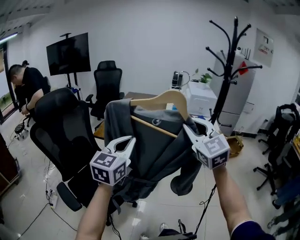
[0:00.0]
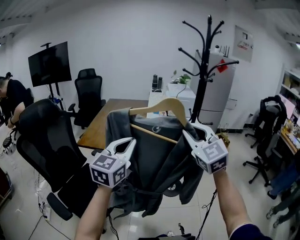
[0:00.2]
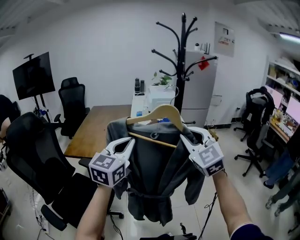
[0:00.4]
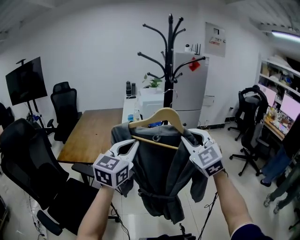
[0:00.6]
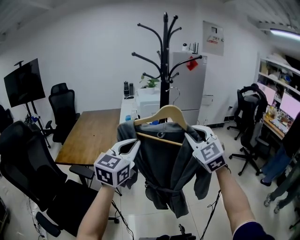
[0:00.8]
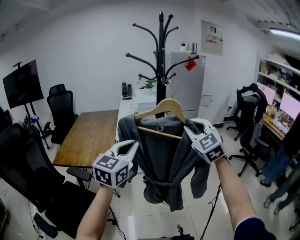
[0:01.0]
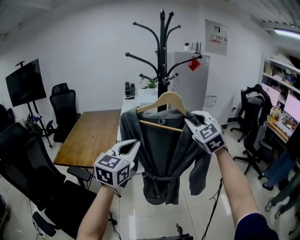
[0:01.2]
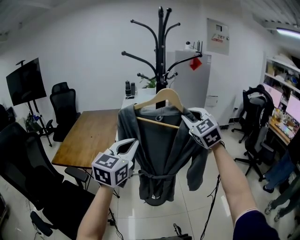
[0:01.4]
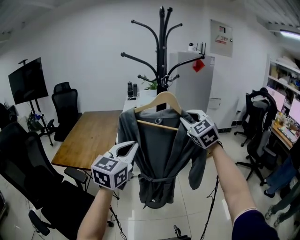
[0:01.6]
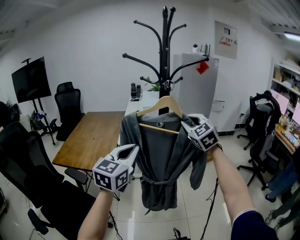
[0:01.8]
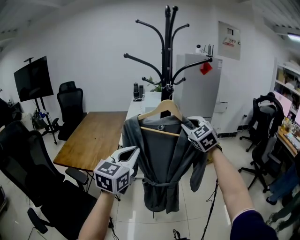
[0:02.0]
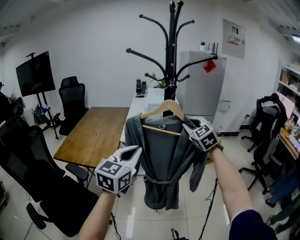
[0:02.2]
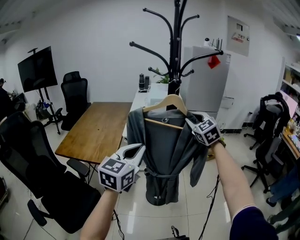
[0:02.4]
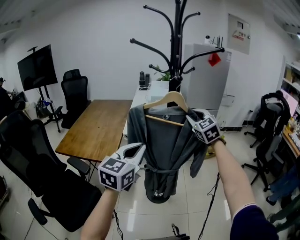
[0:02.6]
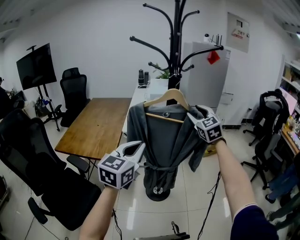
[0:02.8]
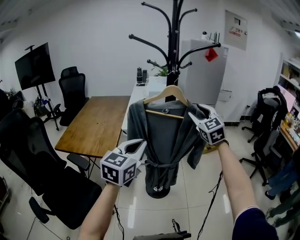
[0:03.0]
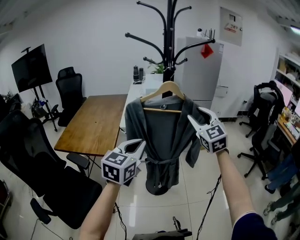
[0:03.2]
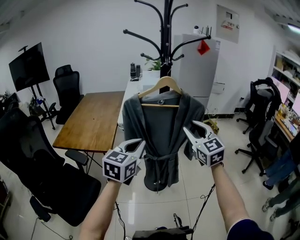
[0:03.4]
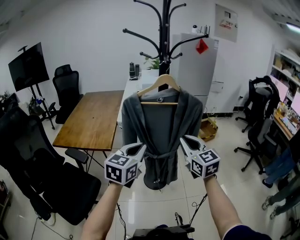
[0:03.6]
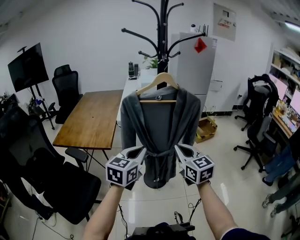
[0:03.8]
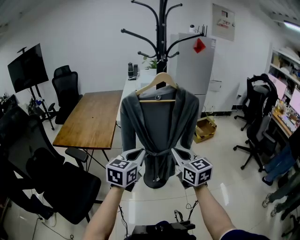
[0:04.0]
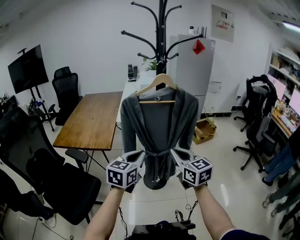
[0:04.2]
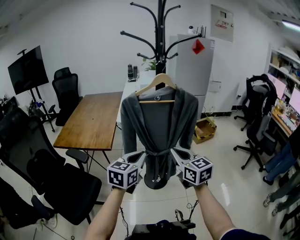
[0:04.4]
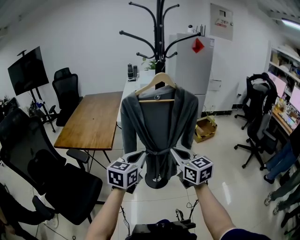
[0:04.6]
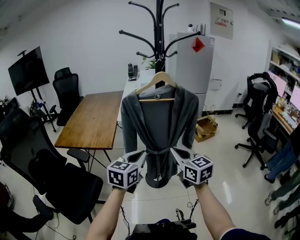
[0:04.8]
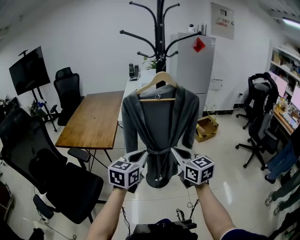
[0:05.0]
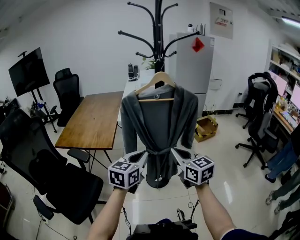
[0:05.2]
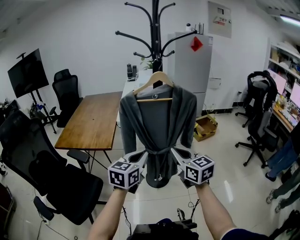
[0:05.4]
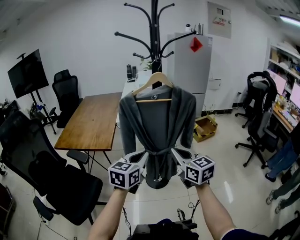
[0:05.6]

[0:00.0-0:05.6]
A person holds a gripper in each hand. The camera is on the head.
0:00.0 to 0:01.4: Both grippers move to the right and forward, roughly 35 cm. The right gripper rotates about 20 degrees.
0:01.4 to 0:02.8: The left gripper ends up some 5 cm from where it was. The right gripper goes about 15 cm forward and downward, and opens up.
0:02.8 to 0:04.2: The right gripper moves backward and downward, about 30 cm, rotates about 40 degrees, and closes up, while the left gripper shifts about 10 cm downward and backward.
0:04.2 to 0:05.6: The grippers move only a little.

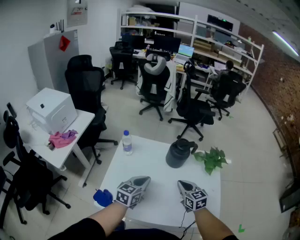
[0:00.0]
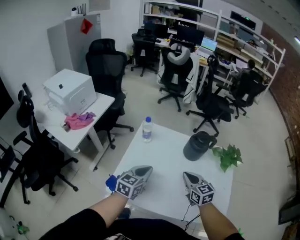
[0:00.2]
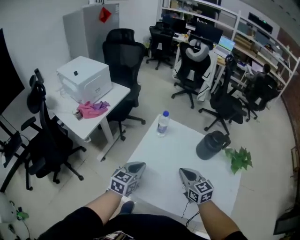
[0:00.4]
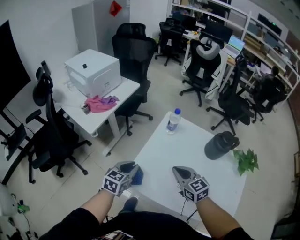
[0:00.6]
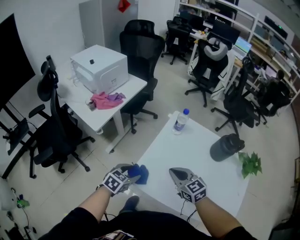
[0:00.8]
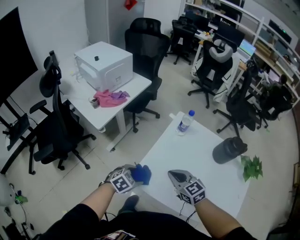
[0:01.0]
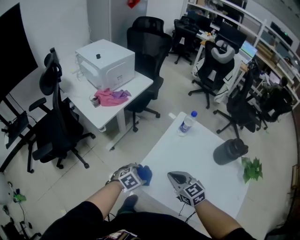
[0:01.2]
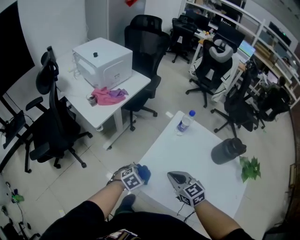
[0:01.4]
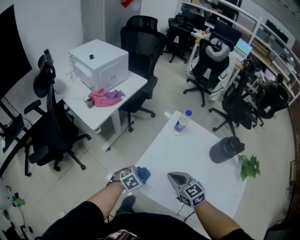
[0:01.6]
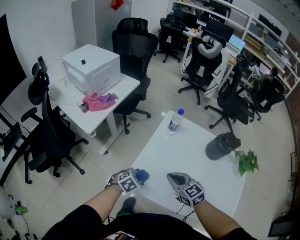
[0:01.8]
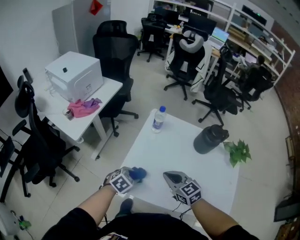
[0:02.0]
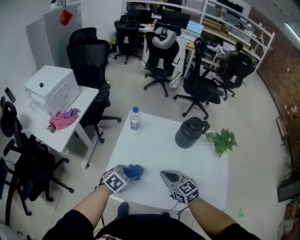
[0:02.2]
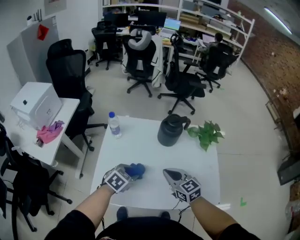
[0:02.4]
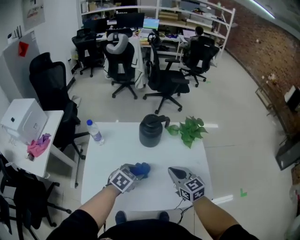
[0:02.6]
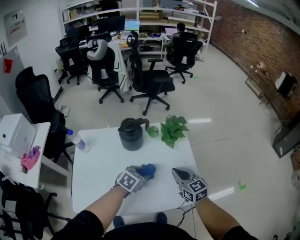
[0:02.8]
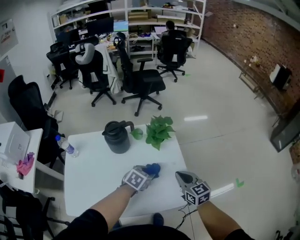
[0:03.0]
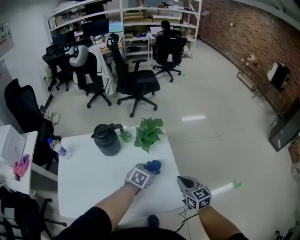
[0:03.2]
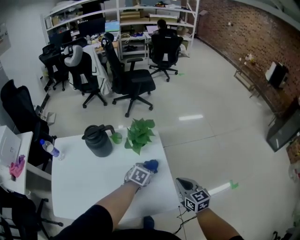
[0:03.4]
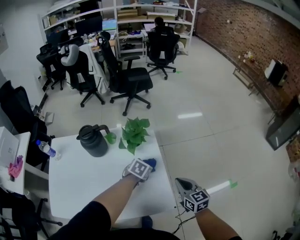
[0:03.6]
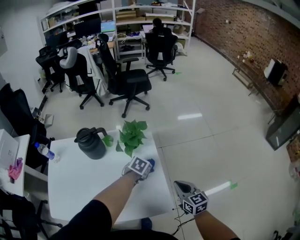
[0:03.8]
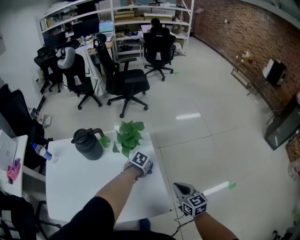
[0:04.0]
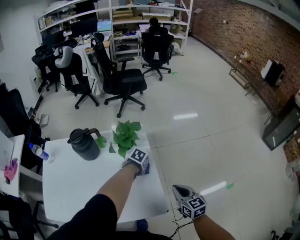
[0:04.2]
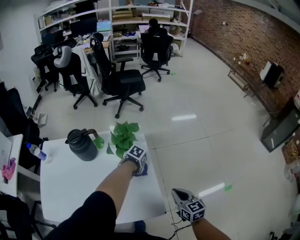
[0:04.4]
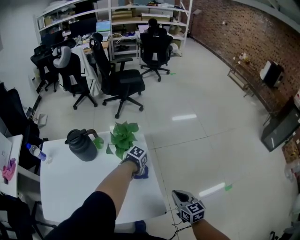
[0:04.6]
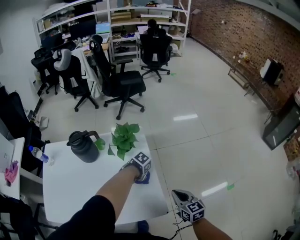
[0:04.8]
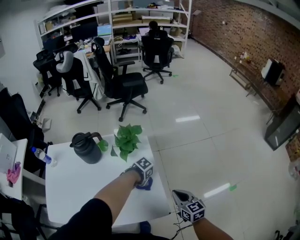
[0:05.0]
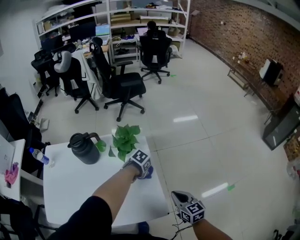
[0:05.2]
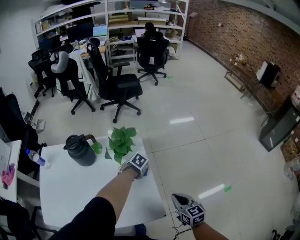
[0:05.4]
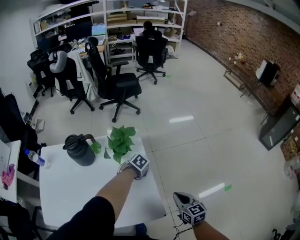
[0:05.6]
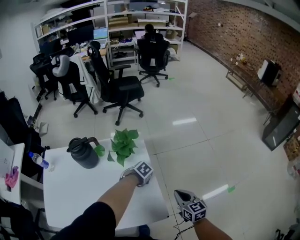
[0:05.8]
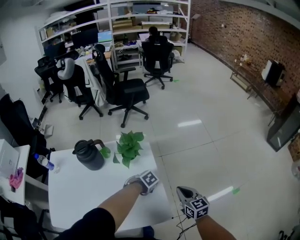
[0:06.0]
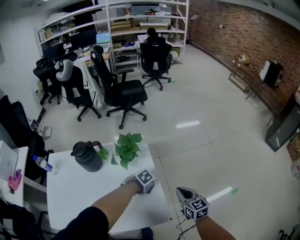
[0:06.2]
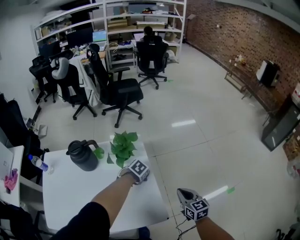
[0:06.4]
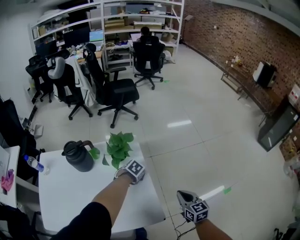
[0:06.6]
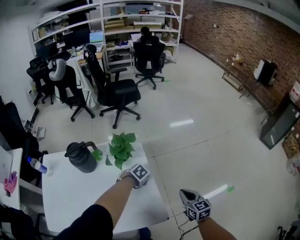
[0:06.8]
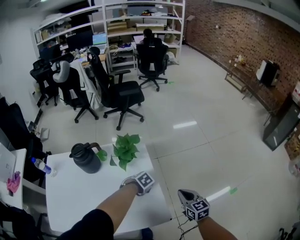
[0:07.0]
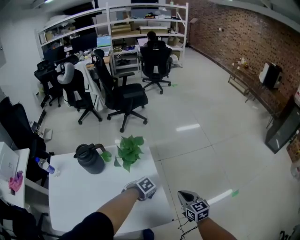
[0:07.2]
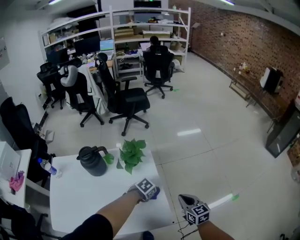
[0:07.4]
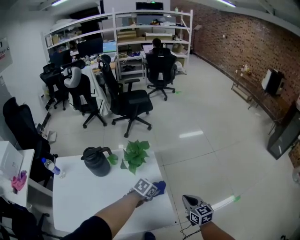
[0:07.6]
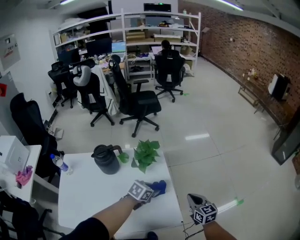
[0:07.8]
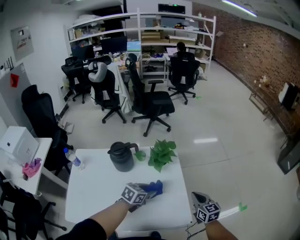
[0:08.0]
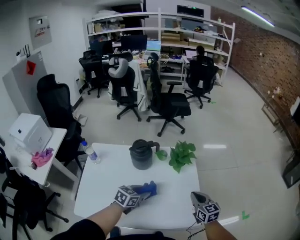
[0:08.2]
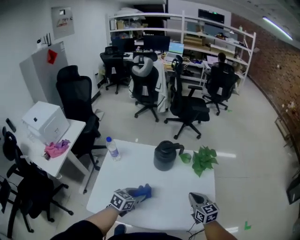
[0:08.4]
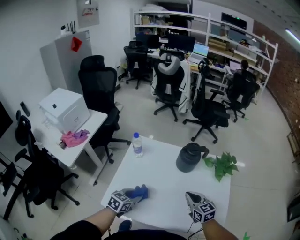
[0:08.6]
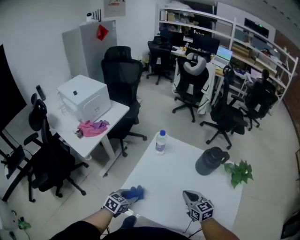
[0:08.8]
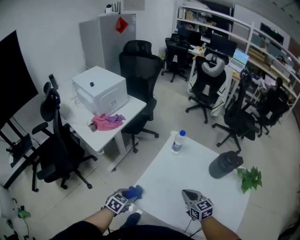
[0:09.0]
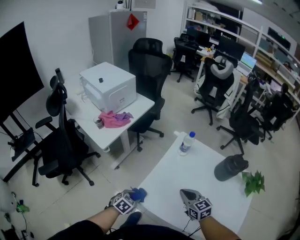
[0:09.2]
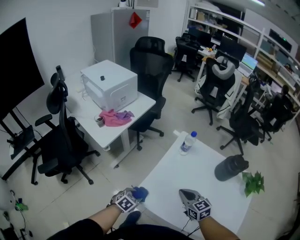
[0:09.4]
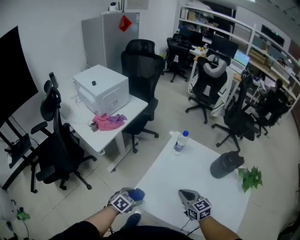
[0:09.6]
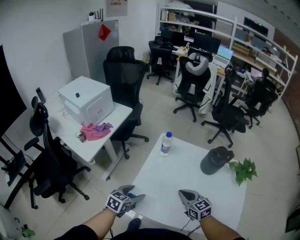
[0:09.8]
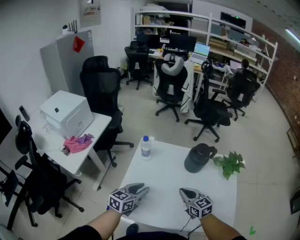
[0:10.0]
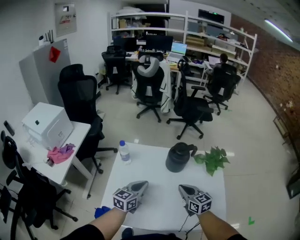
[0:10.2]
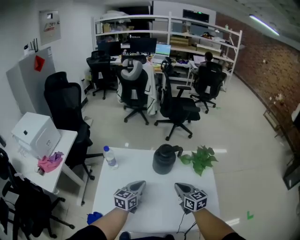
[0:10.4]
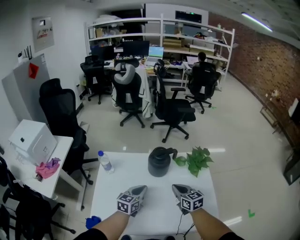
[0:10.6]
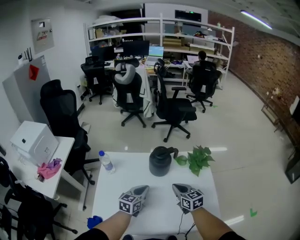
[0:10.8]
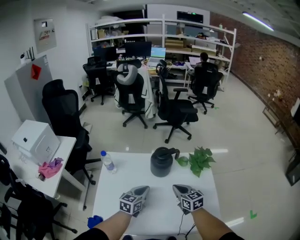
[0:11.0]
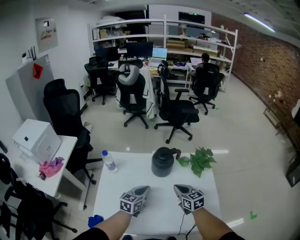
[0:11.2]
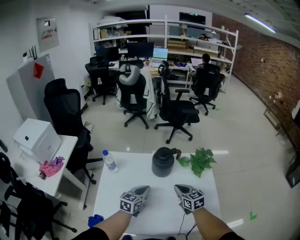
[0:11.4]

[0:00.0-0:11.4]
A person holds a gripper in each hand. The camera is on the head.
0:00.0 to 0:01.4: The right gripper goes some 30 cm to the left, and swivels roughly 40 degrees; the left gripper travels to the left and downward by approximately 35 cm, tips its fingers downward by some 40 degrees, and opens up.
0:01.4 to 0:02.8: The pair of grippers is taken roughly 50 cm. The left gripper rotates roughly 30 degrees, and closes its fingers; the right gripper changes its angle by roughly 50 degrees.
0:02.8 to 0:04.2: The left gripper is displaced to the right, forward and downward by roughly 30 cm, and changes its angle by roughly 30 degrees. The right gripper moves to the right, about 25 cm.
0:05.6 to 0:07.2: The left gripper moves about 10 cm.
0:07.2 to 0:08.6: The two grippers travel together, approximately 50 cm. The left gripper tilts its fingers roughly 40 degrees upward. The right gripper changes its angle by about 30 degrees.
0:08.6 to 0:10.0: The right gripper is displaced to the left by about 10 cm; the left gripper travels upward and forward by some 10 cm, travels to the left and back again, approximately 25 cm each way, and opens, then closes again.
0:10.0 to 0:11.4: The right gripper shifts some 15 cm to the right, while the left gripper goes roughly 20 cm to the right and forward, and closes its fingers.

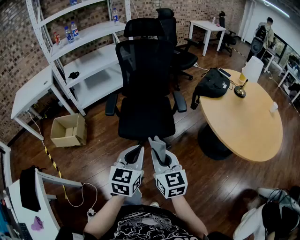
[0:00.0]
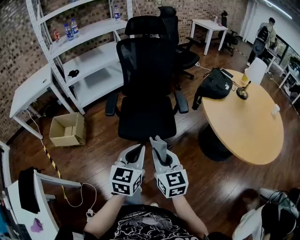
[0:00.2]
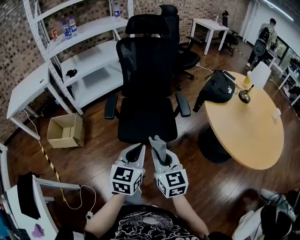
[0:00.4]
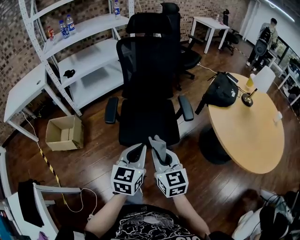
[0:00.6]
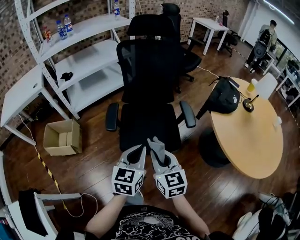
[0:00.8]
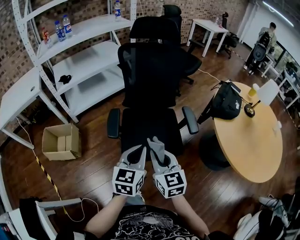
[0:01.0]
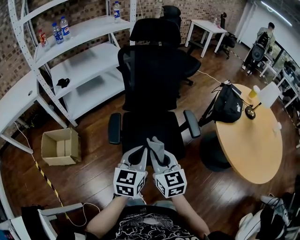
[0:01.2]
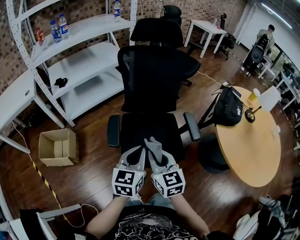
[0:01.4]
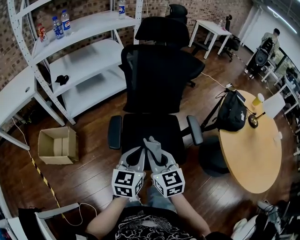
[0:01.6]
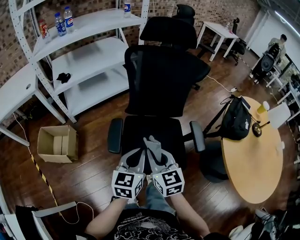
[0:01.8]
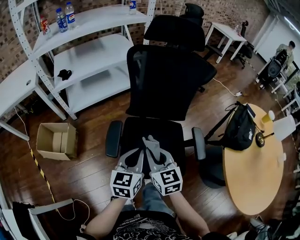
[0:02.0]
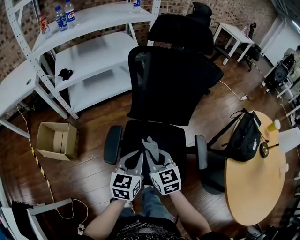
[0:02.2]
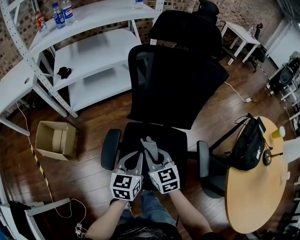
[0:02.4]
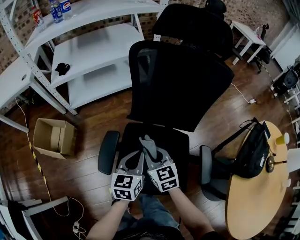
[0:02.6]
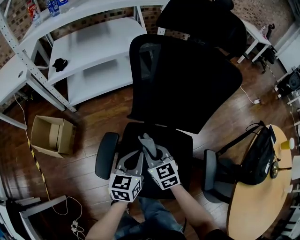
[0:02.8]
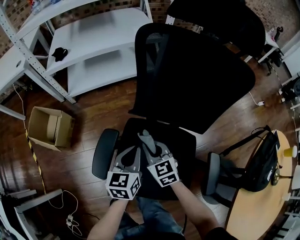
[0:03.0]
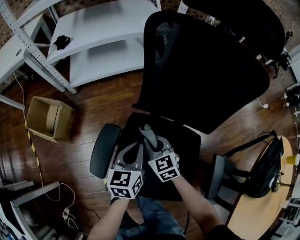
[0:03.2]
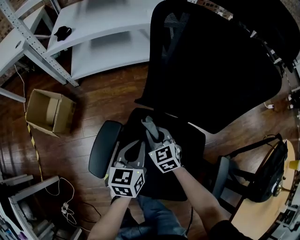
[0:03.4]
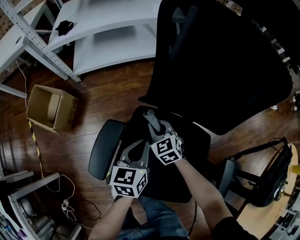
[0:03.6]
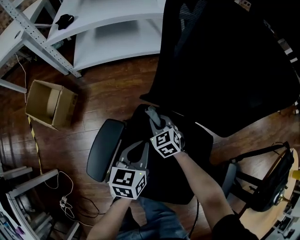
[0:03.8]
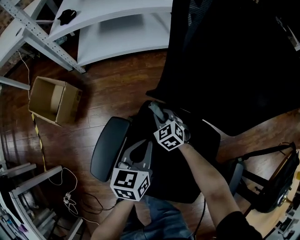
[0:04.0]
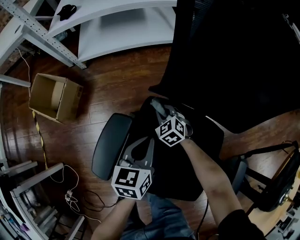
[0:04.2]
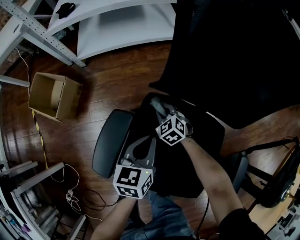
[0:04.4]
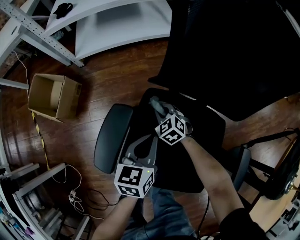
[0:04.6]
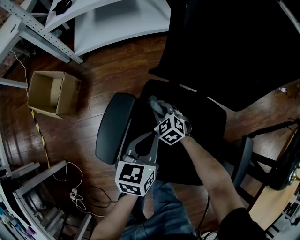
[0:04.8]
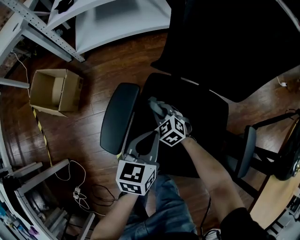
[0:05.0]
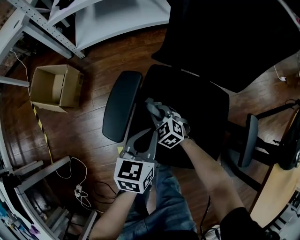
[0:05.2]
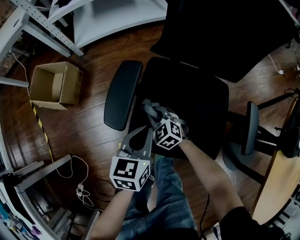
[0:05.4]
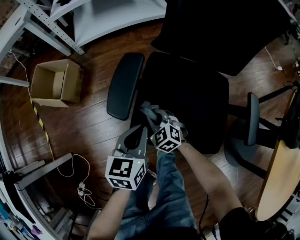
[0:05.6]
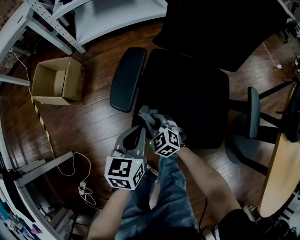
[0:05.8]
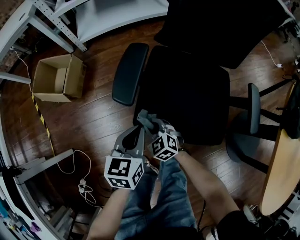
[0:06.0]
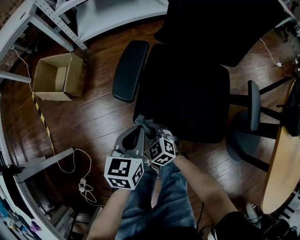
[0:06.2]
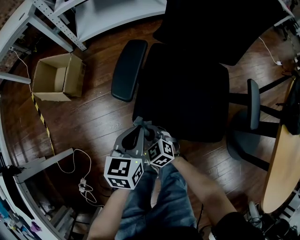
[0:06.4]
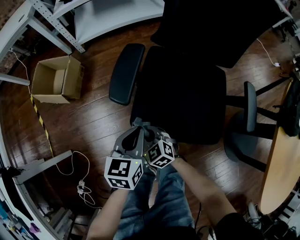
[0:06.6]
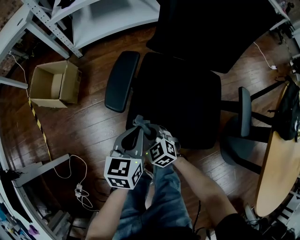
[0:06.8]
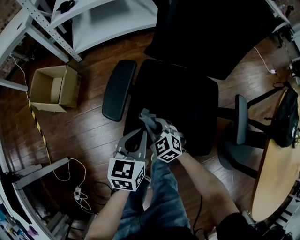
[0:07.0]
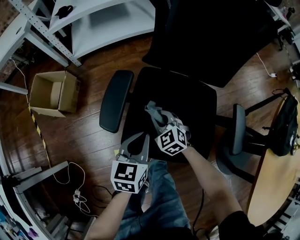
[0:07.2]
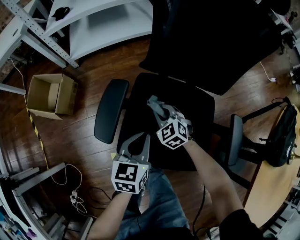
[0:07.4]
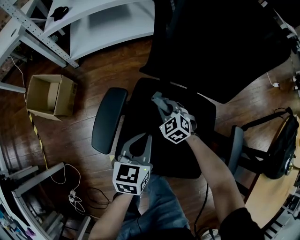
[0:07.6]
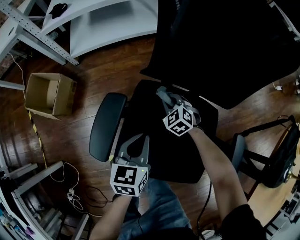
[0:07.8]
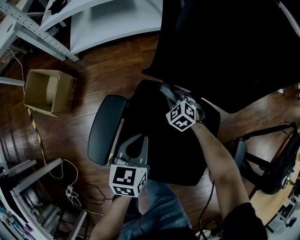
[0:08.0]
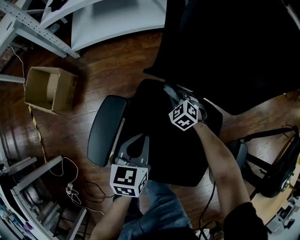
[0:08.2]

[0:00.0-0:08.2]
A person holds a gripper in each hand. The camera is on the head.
0:00.0 to 0:01.6: The two grippers go roughly 35 cm forward and to the left.
0:01.6 to 0:03.2: Both grippers move forward and downward, about 40 cm. The left gripper swivels some 30 degrees. Meanwhile the right gripper turns by approximately 30 degrees.
0:03.2 to 0:05.0: The left gripper moves downward and backward, roughly 10 cm; the right gripper travels downward and to the left by some 20 cm, and rotates approximately 20 degrees.
0:05.0 to 0:06.6: The right gripper shifts about 30 cm backward and to the left, while the left gripper moves backward and to the left, about 20 cm.
0:06.6 to 0:08.2: The left gripper heads forward and to the right, covering about 20 cm, while the right gripper heads forward and to the right, covering some 40 cm, and swivels about 20 degrees.
